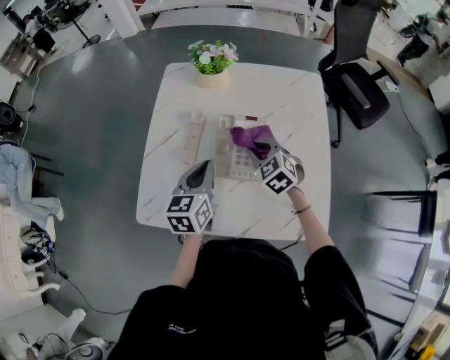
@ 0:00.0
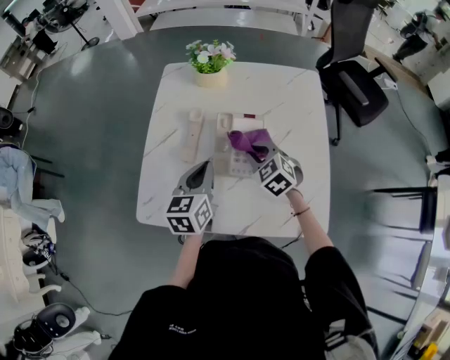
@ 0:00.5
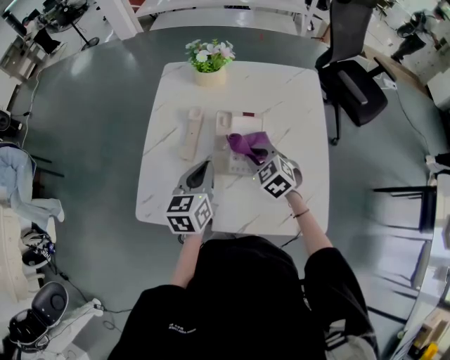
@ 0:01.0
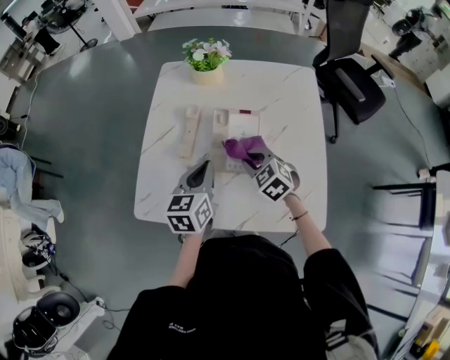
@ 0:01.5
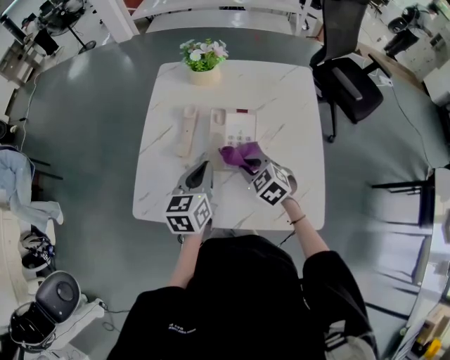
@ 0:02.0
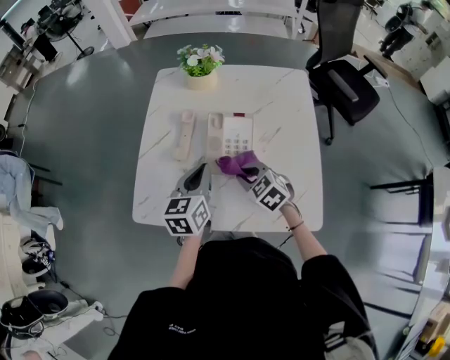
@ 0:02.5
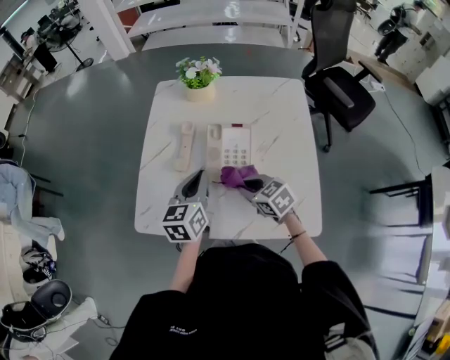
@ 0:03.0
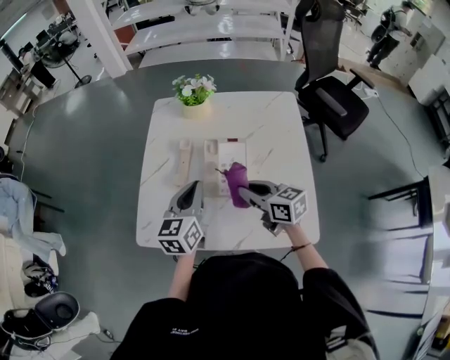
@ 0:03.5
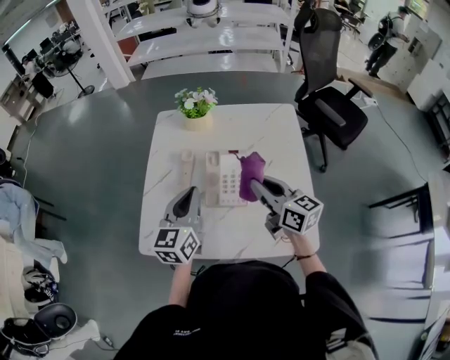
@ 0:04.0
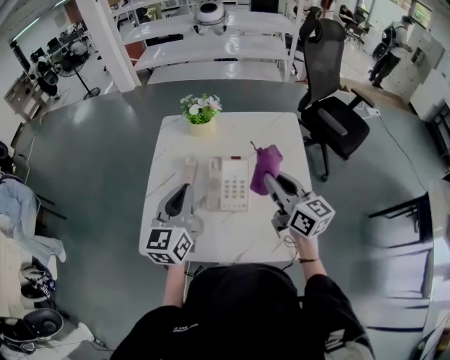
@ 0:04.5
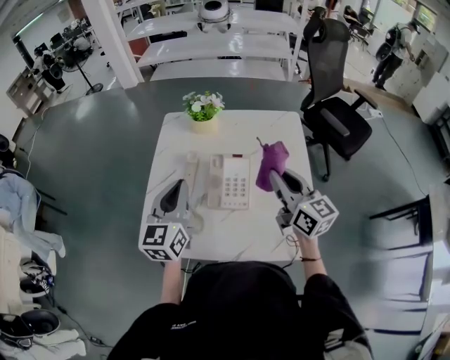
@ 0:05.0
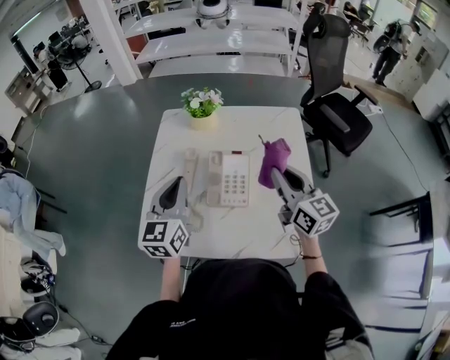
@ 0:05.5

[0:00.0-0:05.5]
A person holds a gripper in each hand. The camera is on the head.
0:00.0 to 0:02.0: The right gripper shifts approximately 10 cm backward.
0:02.0 to 0:03.5: The right gripper shifts approximately 10 cm upward, and turns by some 50 degrees. The left gripper is displaced upward by roughly 5 cm.
0:03.5 to 0:05.5: The right gripper is displaced upward and to the right by some 15 cm, and swivels some 30 degrees. Meanwhile the left gripper travels upward by approximately 10 cm.

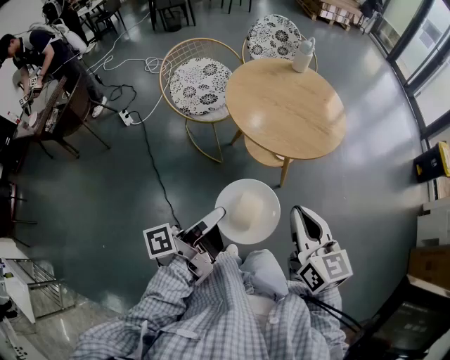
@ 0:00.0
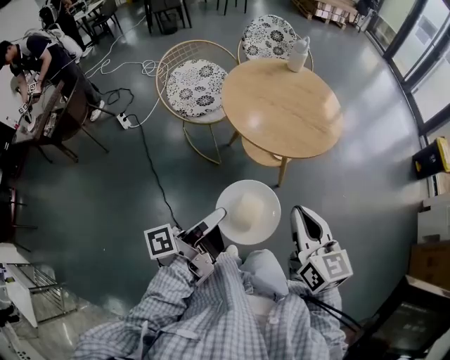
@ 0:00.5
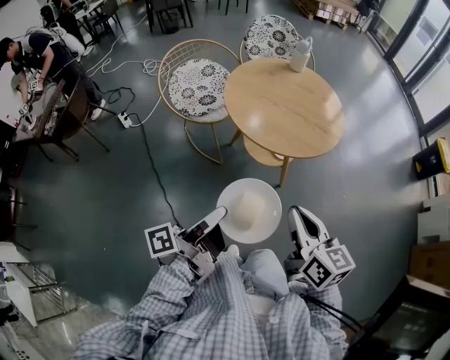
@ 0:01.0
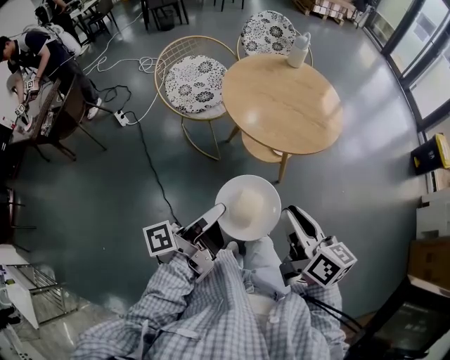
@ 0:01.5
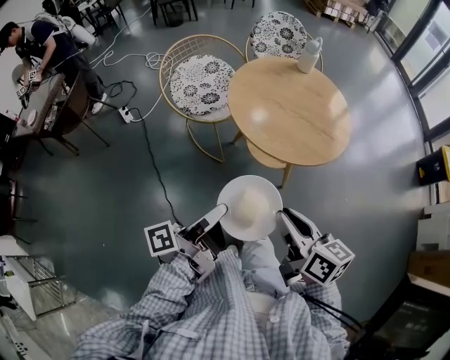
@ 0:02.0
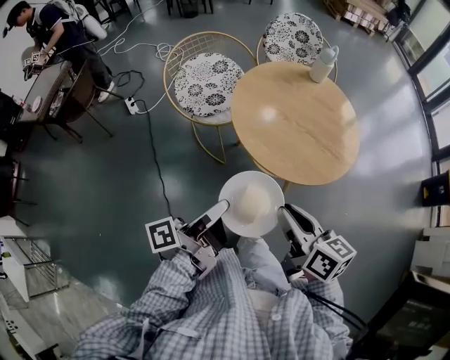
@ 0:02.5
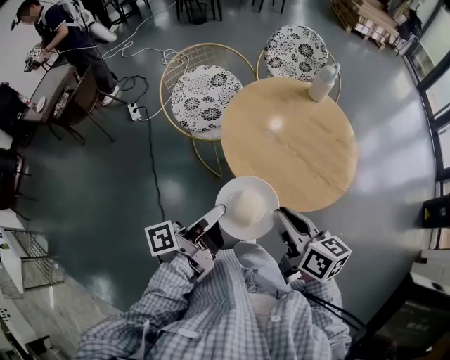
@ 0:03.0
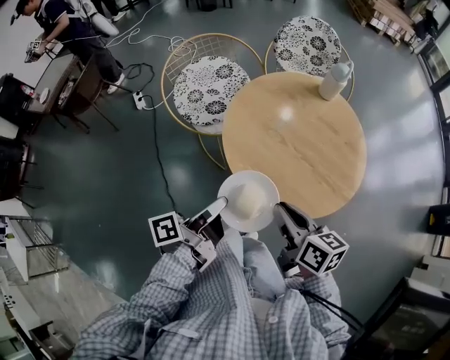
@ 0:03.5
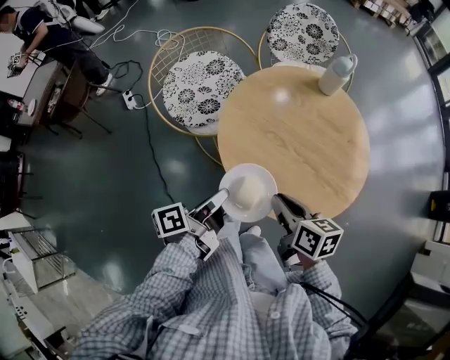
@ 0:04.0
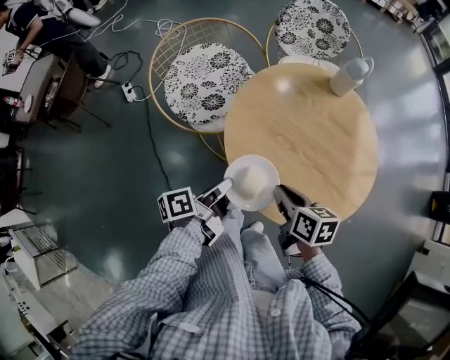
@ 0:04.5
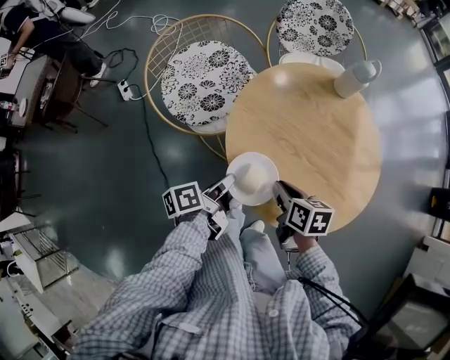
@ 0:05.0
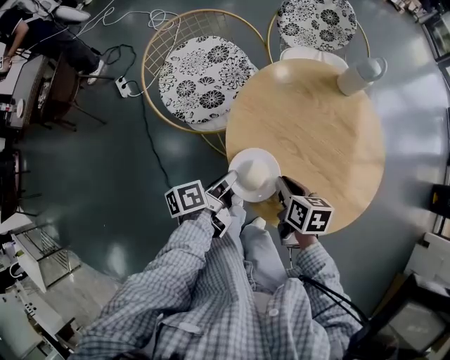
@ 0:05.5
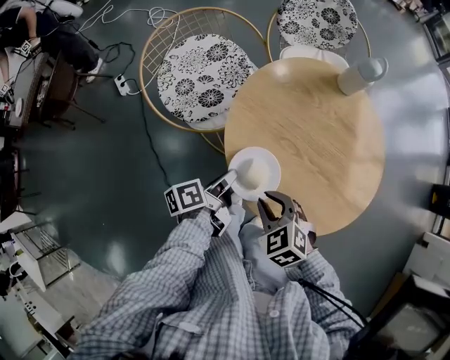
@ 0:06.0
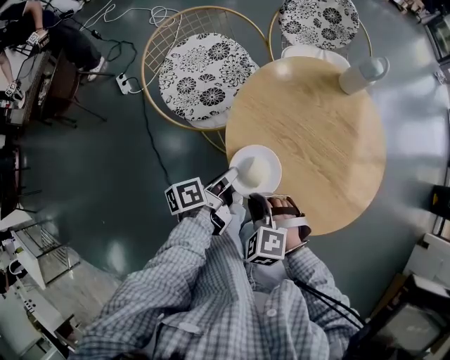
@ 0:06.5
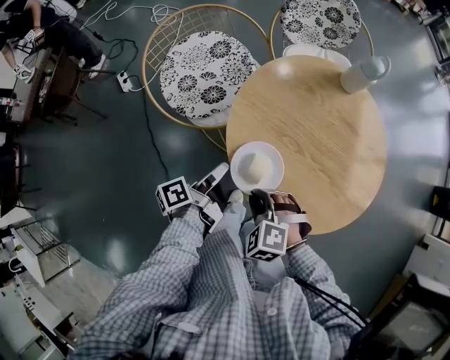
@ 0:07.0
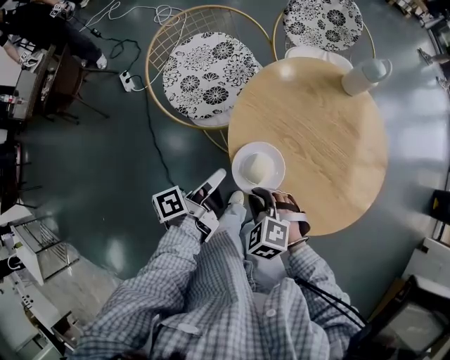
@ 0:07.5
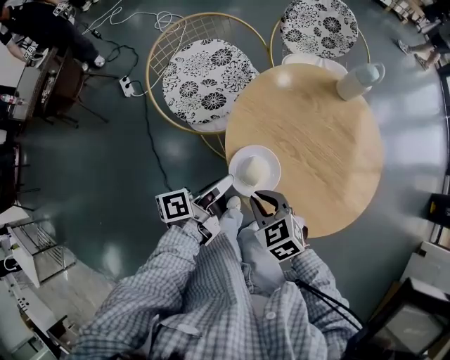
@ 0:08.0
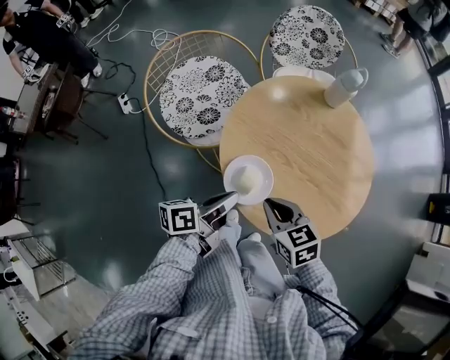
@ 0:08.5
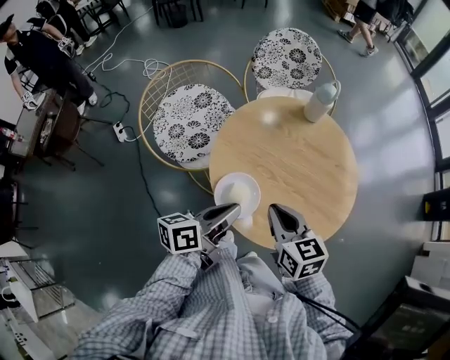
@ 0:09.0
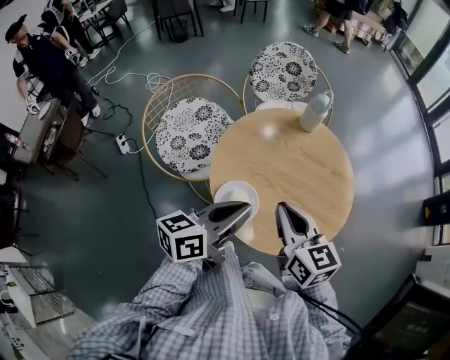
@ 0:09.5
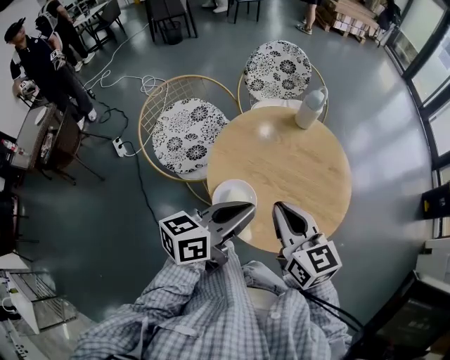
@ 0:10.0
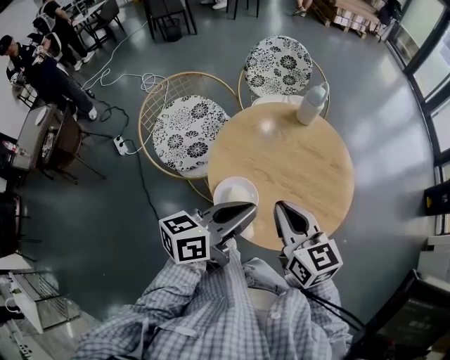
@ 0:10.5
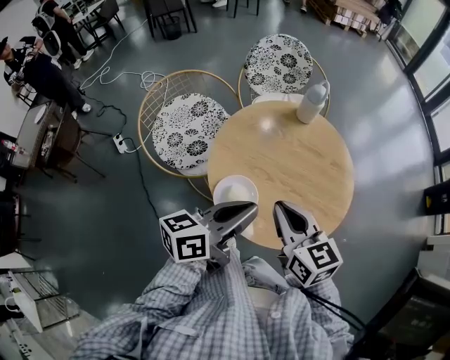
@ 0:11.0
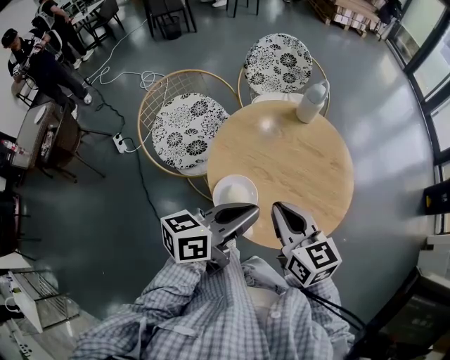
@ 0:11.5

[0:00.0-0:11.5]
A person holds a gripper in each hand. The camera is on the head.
0:00.0 to 0:02.0: The right gripper moves approximately 5 cm, and changes its angle by roughly 30 degrees.
0:02.0 to 0:04.0: The right gripper travels forward and downward by roughly 25 cm. The left gripper heads forward, covering about 25 cm.
0:04.0 to 0:06.0: The left gripper goes roughly 15 cm downward and forward, while the right gripper travels to the left and downward by roughly 10 cm, and rolls counterclockwise, seen from behind, by some 60 degrees.
0:06.0 to 0:07.5: The left gripper changes place by about 5 cm. The right gripper turns by approximately 20 degrees.
0:07.5 to 0:09.5: Both grippers travel together upward and to the right, roughly 25 cm. The left gripper rolls clockwise, seen from behind, by some 50 degrees, and closes up; the right gripper tilts its fingers some 40 degrees upward.
0:09.5 to 0:11.5: The grippers move only a little.

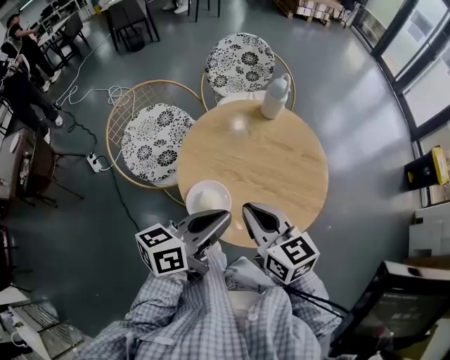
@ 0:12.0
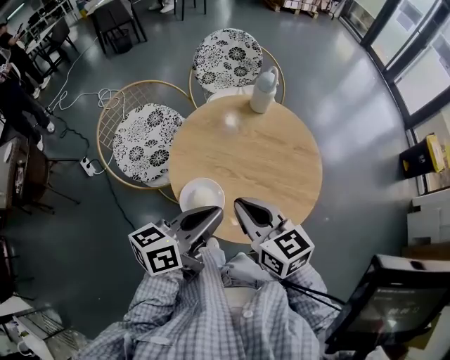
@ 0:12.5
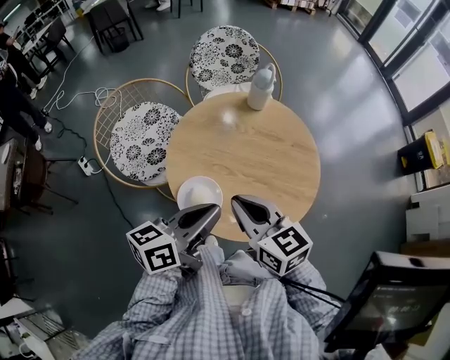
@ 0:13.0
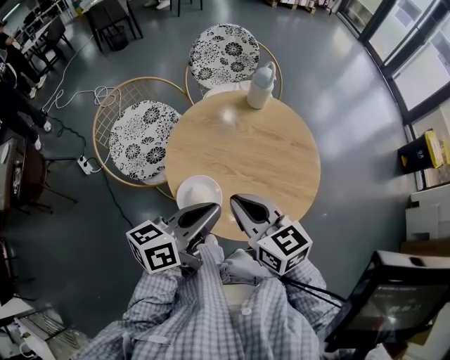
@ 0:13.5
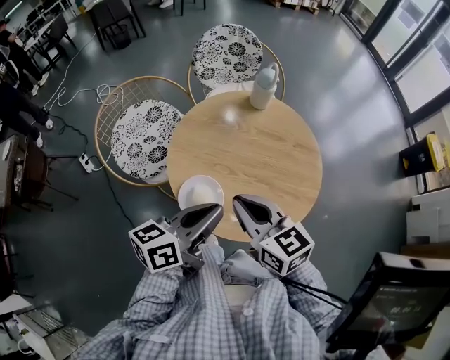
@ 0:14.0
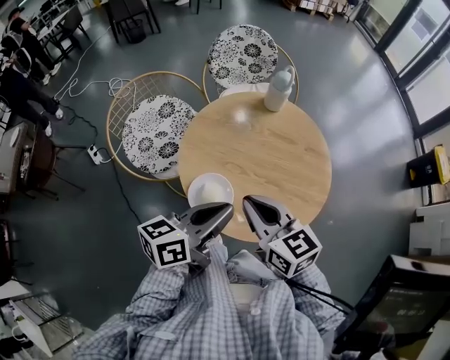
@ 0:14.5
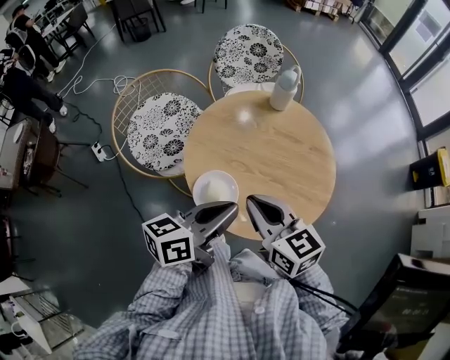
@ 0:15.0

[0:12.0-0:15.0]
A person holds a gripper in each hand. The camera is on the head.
0:12.0 to 0:15.0: The two grippers keep their place.

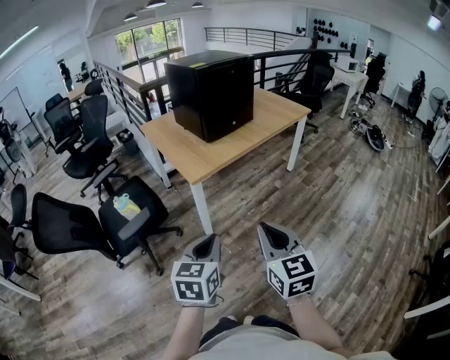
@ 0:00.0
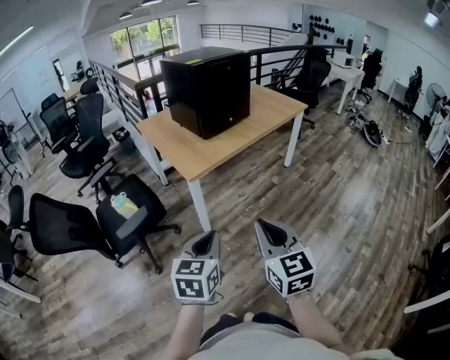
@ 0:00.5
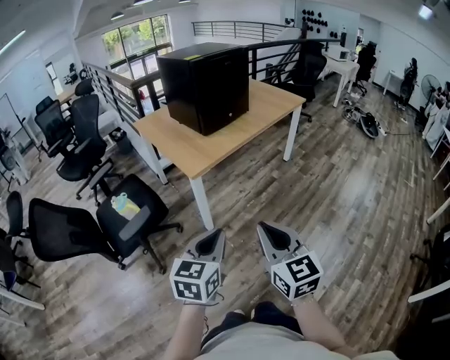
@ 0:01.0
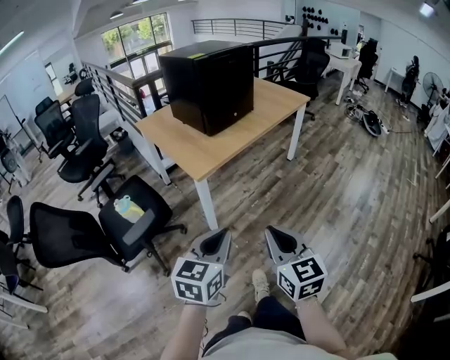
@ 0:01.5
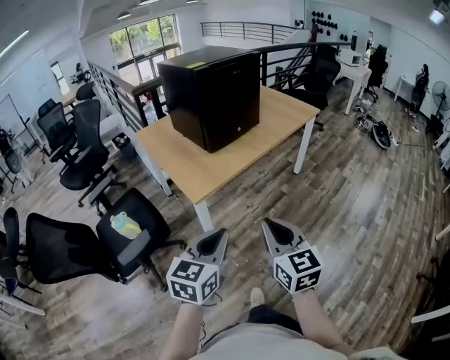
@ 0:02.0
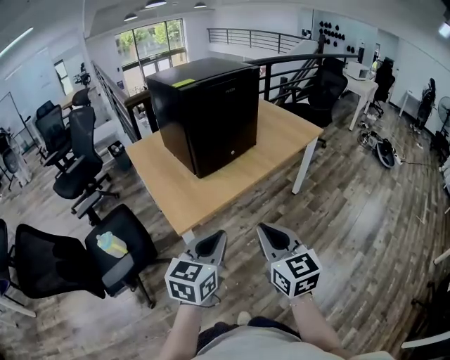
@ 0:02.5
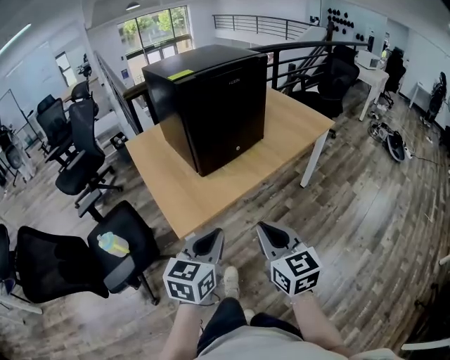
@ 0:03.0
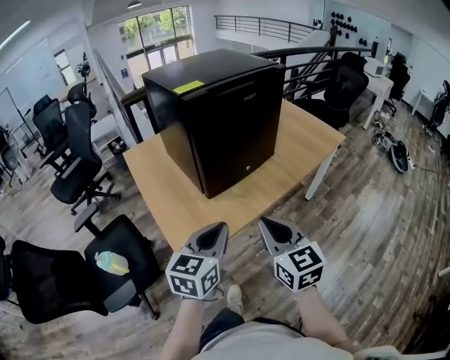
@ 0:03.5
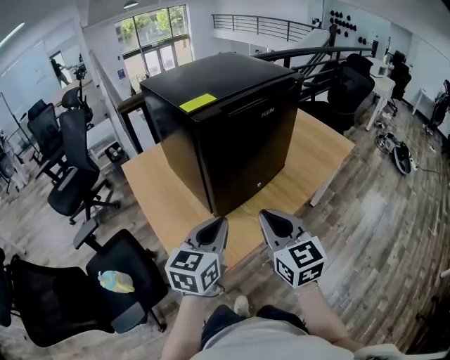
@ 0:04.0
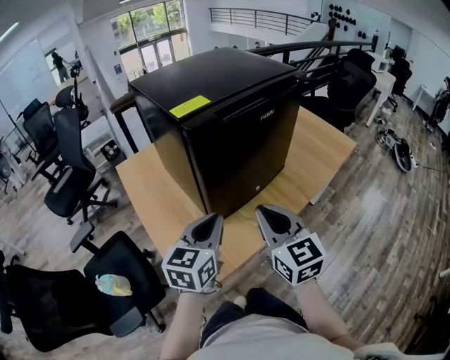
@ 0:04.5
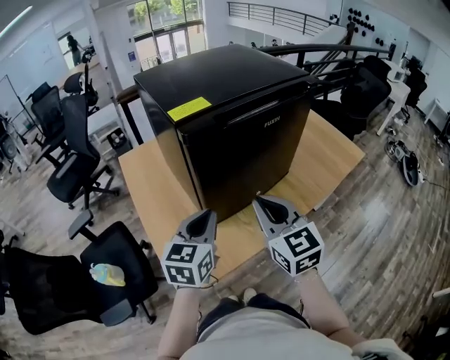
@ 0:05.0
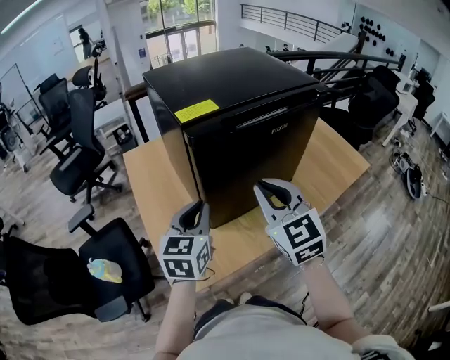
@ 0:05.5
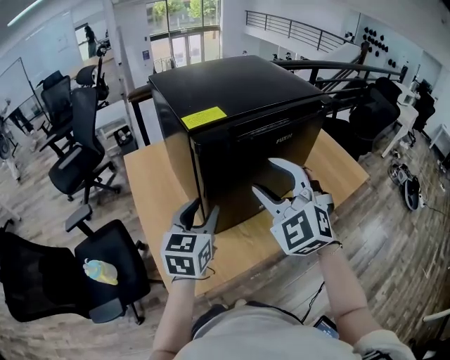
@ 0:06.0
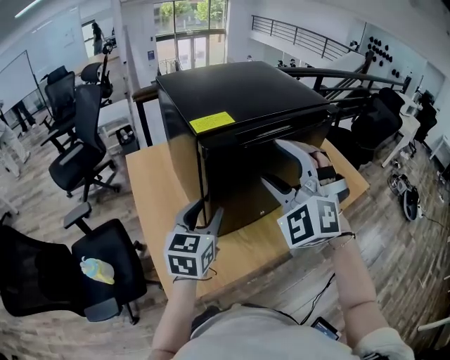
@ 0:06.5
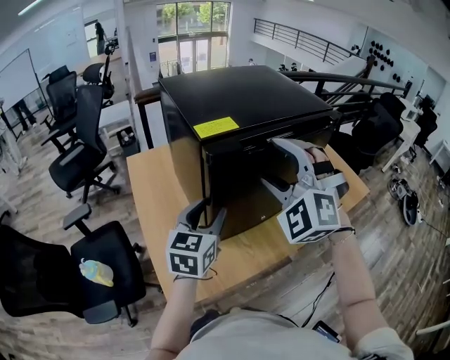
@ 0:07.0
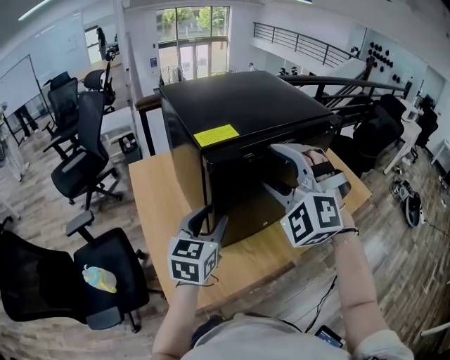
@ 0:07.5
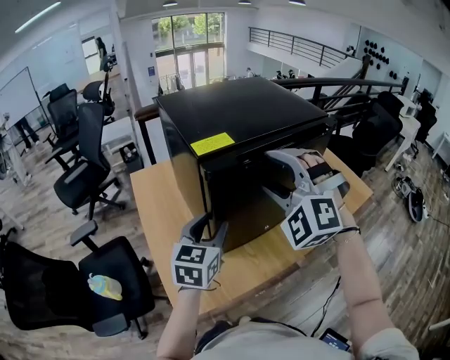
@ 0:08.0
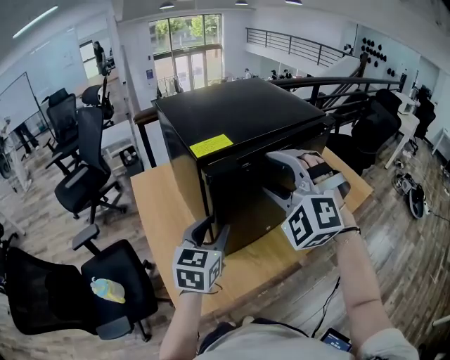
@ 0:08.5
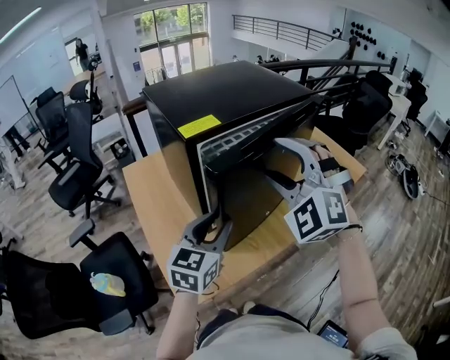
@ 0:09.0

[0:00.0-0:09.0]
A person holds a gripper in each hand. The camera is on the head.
0:00.0 to 0:02.0: Both grippers travel together forward, some 20 cm.
0:02.0 to 0:04.5: The two grippers travel together, forward, about 50 cm.
0:04.5 to 0:07.0: The right gripper heads forward and upward, covering approximately 20 cm, twists some 70 degrees counterclockwise, seen from behind, and opens. The left gripper travels forward by approximately 10 cm, and opens up.
0:07.0 to 0:09.0: The left gripper heads backward, covering some 5 cm.
